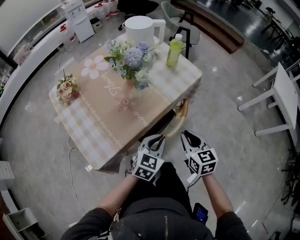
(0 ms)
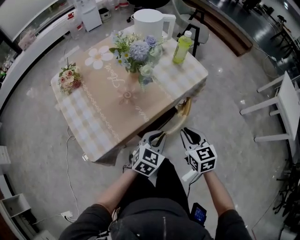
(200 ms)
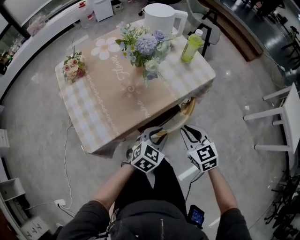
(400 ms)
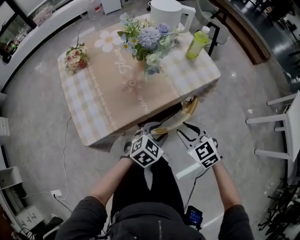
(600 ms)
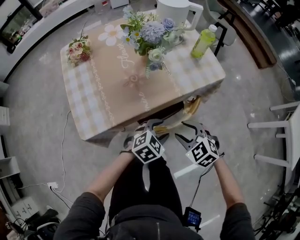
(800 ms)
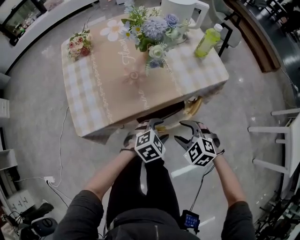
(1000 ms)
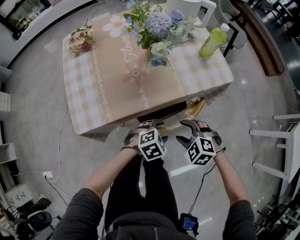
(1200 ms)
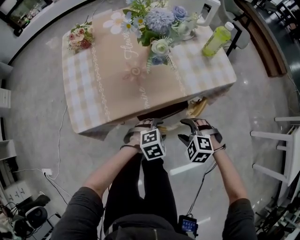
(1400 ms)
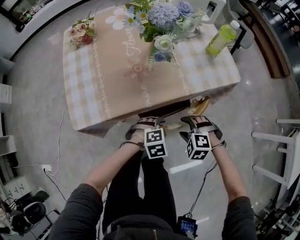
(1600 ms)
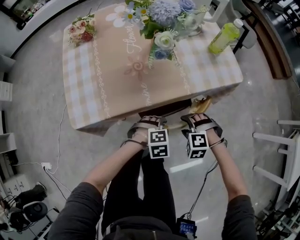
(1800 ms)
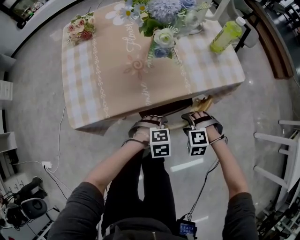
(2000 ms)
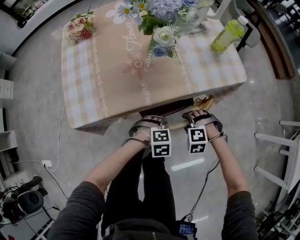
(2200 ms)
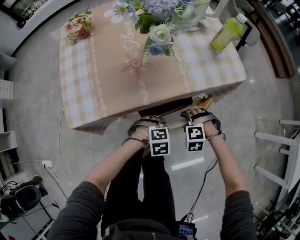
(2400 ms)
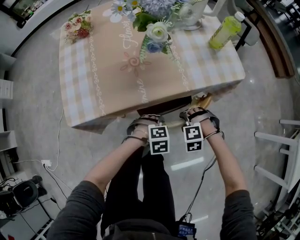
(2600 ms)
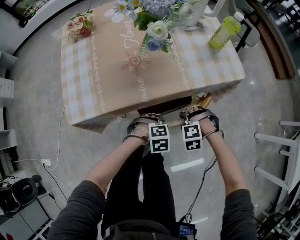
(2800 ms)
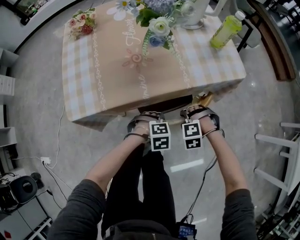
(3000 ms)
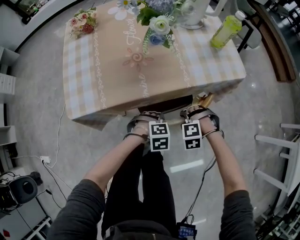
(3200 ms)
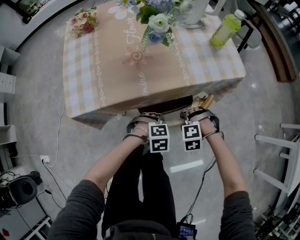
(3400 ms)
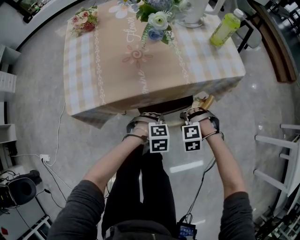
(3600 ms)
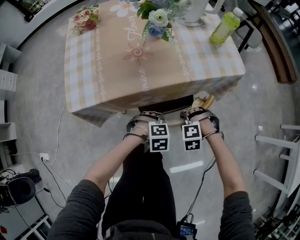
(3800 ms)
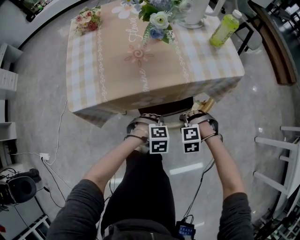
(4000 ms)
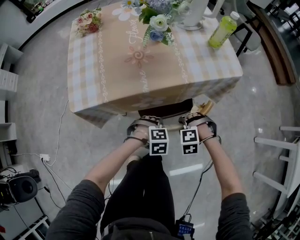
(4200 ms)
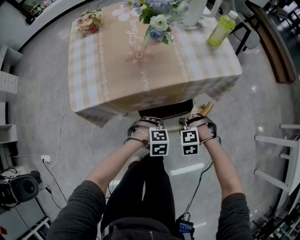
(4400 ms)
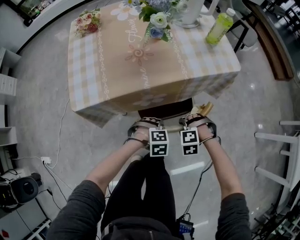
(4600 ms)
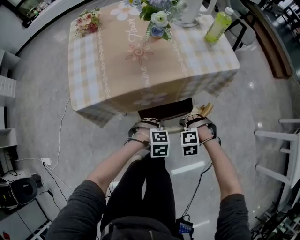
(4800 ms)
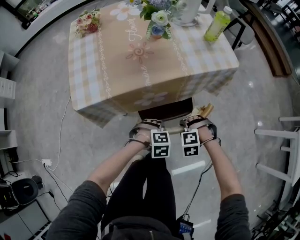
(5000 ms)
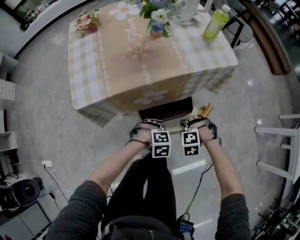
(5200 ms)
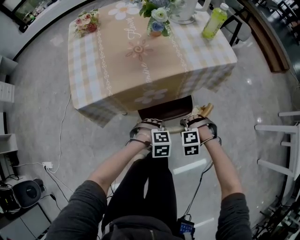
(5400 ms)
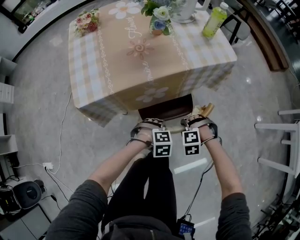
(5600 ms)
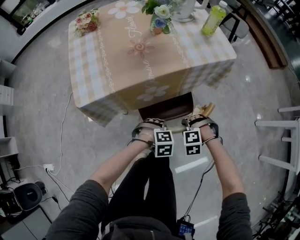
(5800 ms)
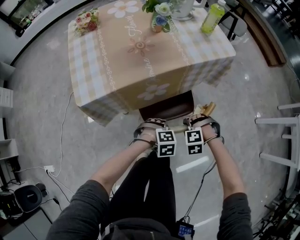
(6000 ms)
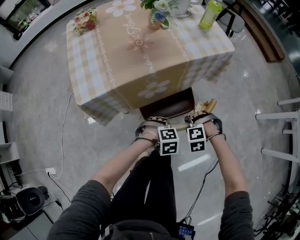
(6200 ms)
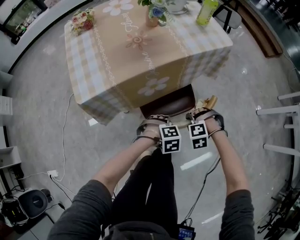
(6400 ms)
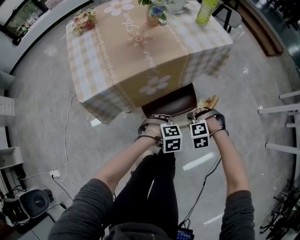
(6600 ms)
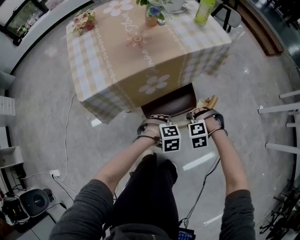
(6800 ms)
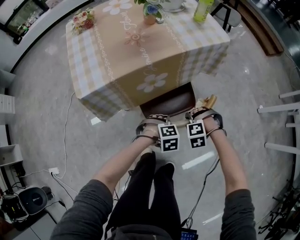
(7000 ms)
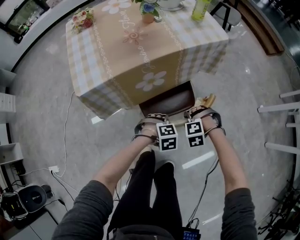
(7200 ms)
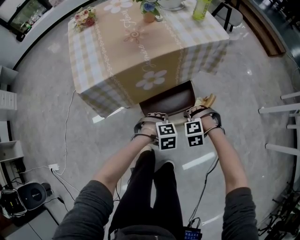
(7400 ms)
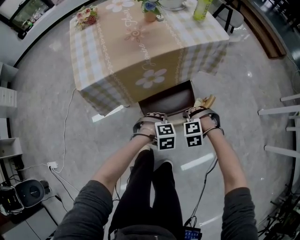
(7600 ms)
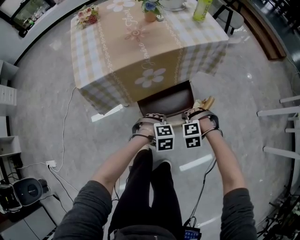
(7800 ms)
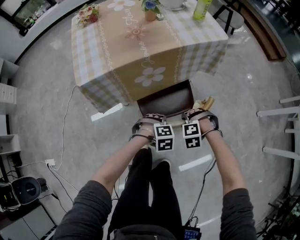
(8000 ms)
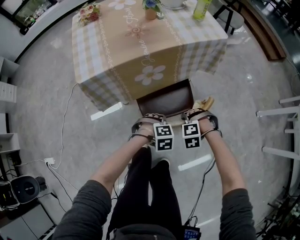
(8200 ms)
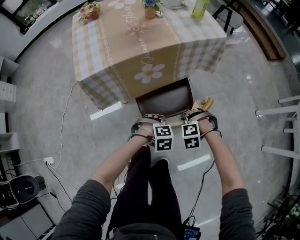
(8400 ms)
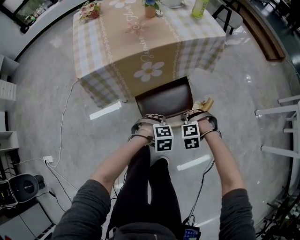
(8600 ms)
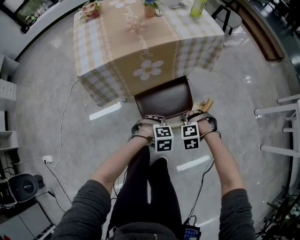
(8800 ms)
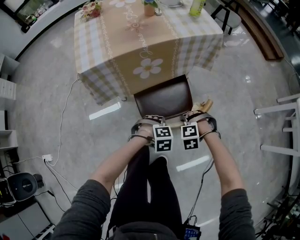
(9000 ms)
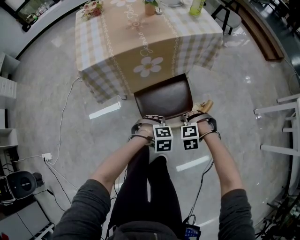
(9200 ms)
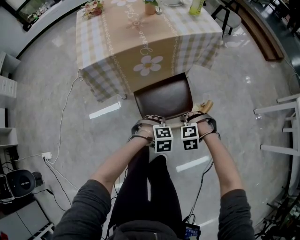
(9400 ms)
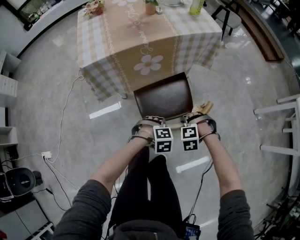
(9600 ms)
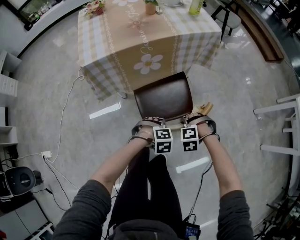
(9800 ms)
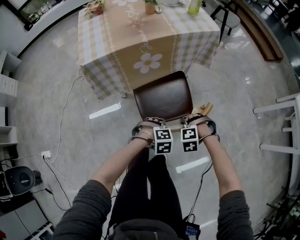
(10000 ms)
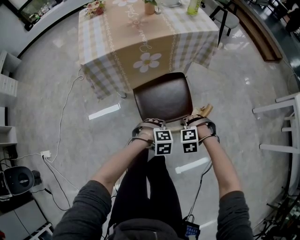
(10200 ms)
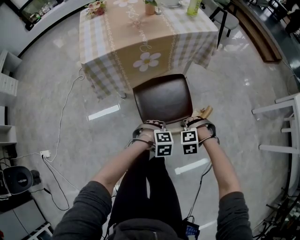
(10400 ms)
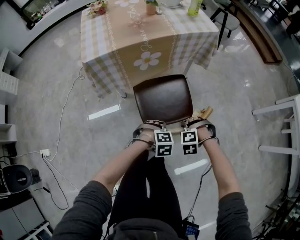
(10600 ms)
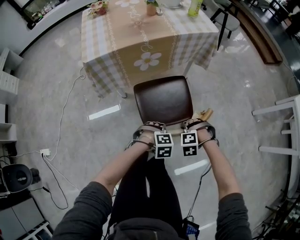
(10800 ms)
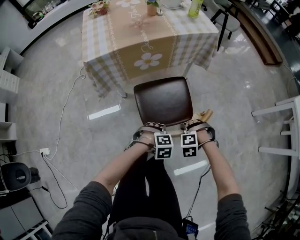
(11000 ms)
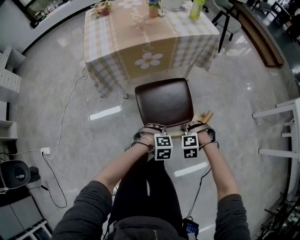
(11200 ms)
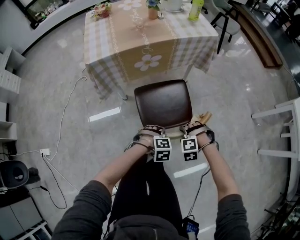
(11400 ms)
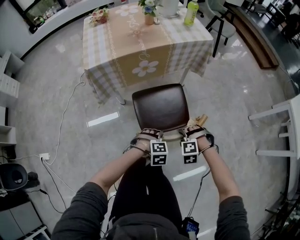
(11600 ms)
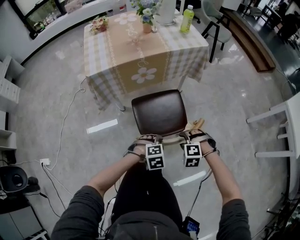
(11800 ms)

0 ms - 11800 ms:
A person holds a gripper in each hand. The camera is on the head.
0 ms - 1400 ms: Both grippers travel together downward, approximately 15 cm. The left gripper tilts its fingers approximately 30 degrees downward, and opens, while the right gripper twists approximately 70 degrees counterclockwise, seen from behind, and opens.
1400 ms - 3000 ms: The grippers both shift downward by roughly 10 cm. The left gripper closes up. Meanwhile the right gripper changes its angle by approximately 30 degrees.
3000 ms - 4400 ms: The right gripper changes place by about 5 cm. Meanwhile the left gripper changes place by some 5 cm.
4400 ms - 6000 ms: The left gripper shifts by approximately 10 cm. Meanwhile the right gripper shifts by roughly 10 cm.
6000 ms - 7400 ms: The grippers move only a little.
7400 ms - 8800 ms: The right gripper ends up roughly 10 cm from where it was, while the left gripper changes place by approximately 10 cm.
8800 ms - 10400 ms: The left gripper moves about 10 cm. Meanwhile the right gripper changes place by roughly 10 cm.
10400 ms - 11800 ms: Both grippers travel together upward, roughly 5 cm. The left gripper opens its fingers.

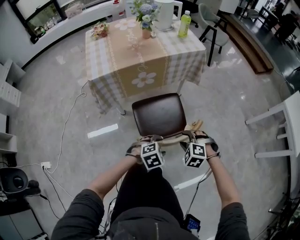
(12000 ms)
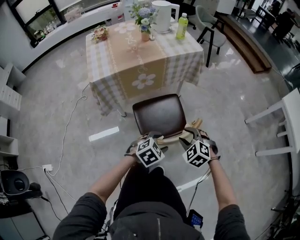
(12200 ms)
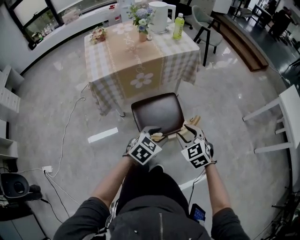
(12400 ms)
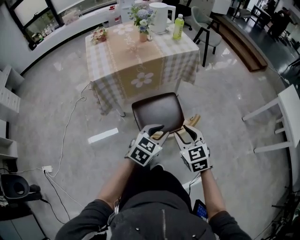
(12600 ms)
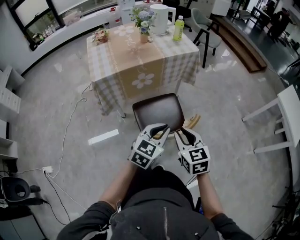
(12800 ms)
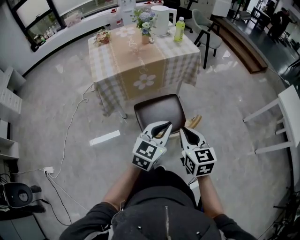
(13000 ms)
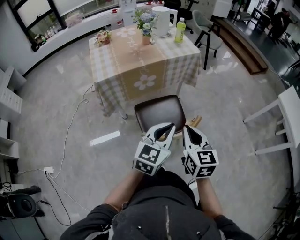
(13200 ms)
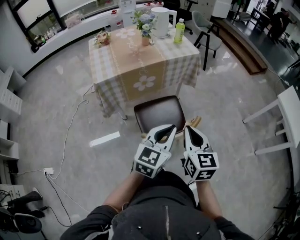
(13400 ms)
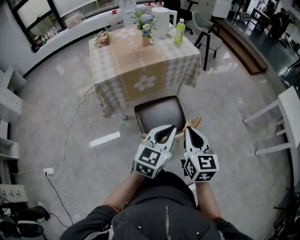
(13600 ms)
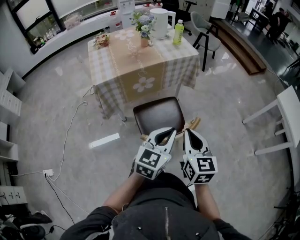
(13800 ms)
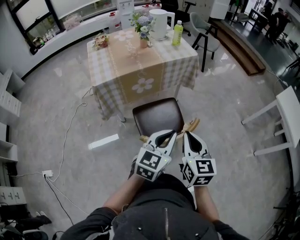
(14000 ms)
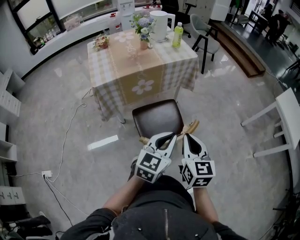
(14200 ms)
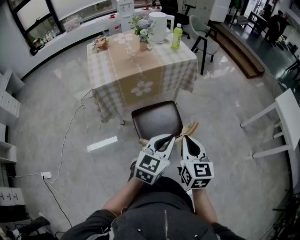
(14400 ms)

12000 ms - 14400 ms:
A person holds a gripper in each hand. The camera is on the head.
12000 ms - 13200 ms: The grippers both shift upward by some 25 cm. The right gripper rotates around the line of its fingers by roughly 70 degrees, clockwise from behind, and closes up. The left gripper tips its fingers upward by some 50 degrees, and closes up.
13200 ms - 14400 ms: The grippers make only small movements.

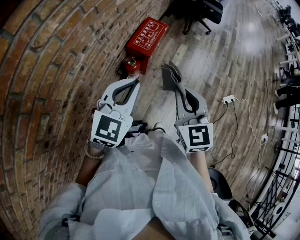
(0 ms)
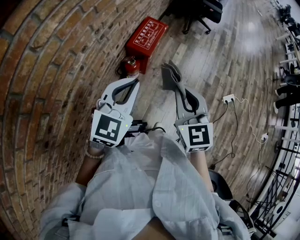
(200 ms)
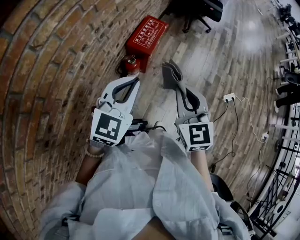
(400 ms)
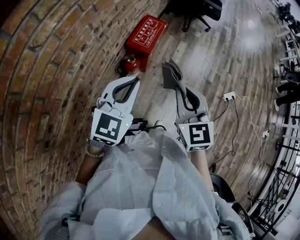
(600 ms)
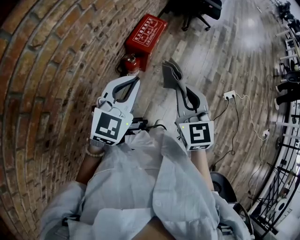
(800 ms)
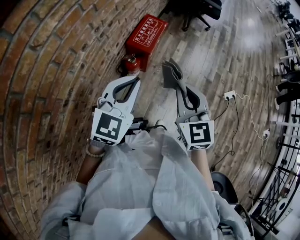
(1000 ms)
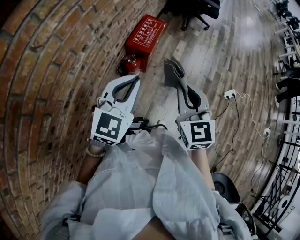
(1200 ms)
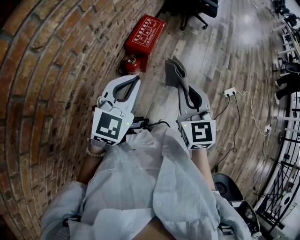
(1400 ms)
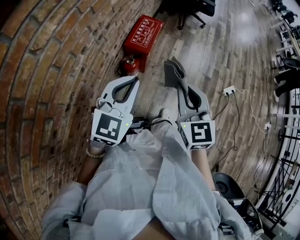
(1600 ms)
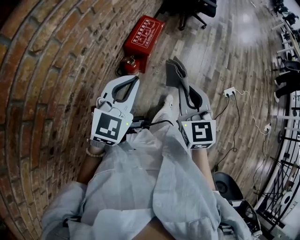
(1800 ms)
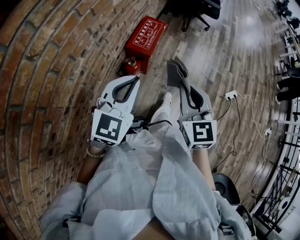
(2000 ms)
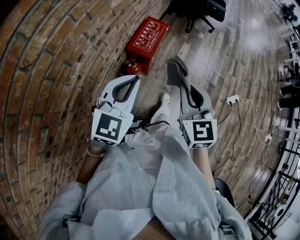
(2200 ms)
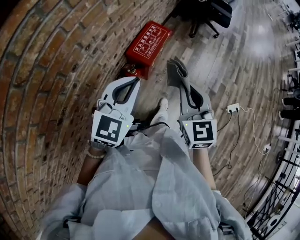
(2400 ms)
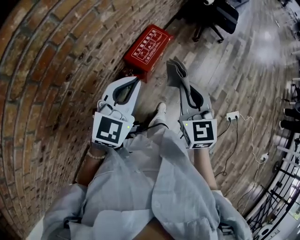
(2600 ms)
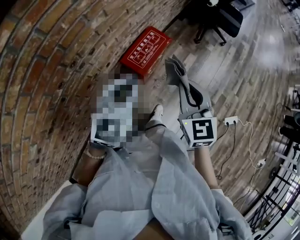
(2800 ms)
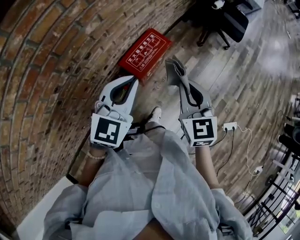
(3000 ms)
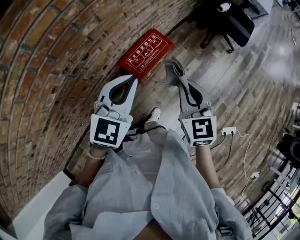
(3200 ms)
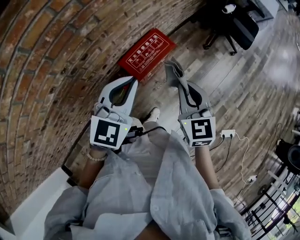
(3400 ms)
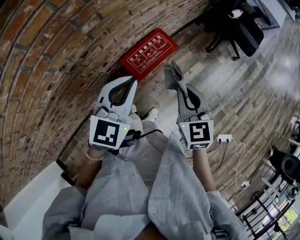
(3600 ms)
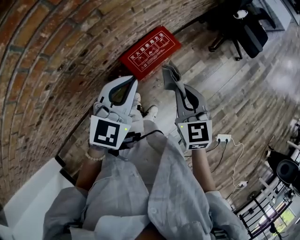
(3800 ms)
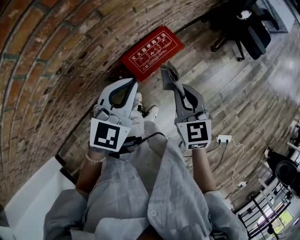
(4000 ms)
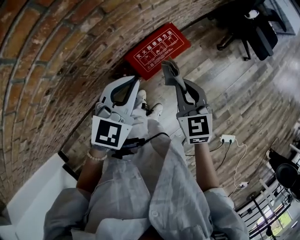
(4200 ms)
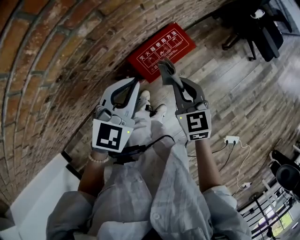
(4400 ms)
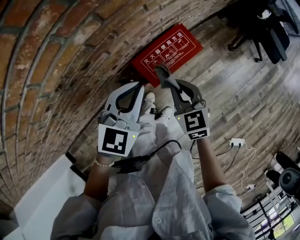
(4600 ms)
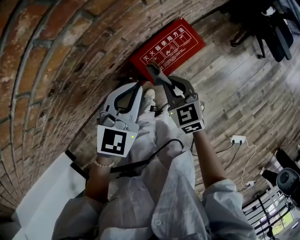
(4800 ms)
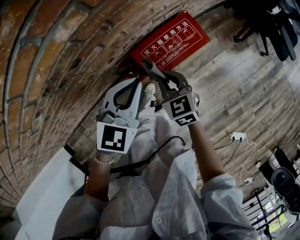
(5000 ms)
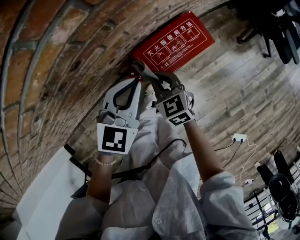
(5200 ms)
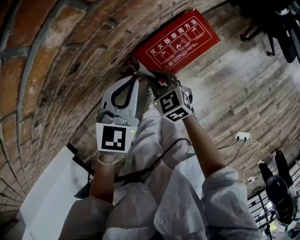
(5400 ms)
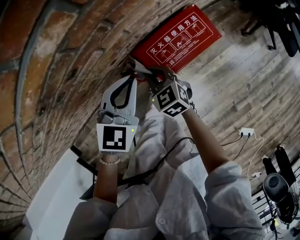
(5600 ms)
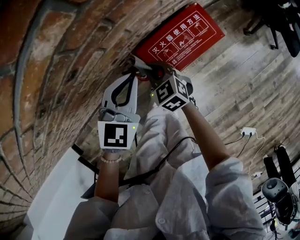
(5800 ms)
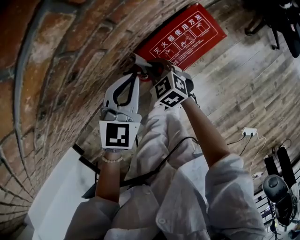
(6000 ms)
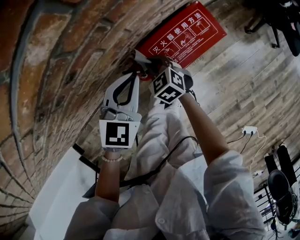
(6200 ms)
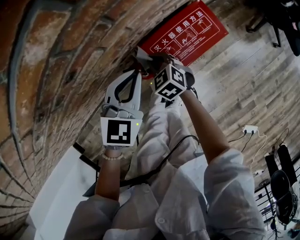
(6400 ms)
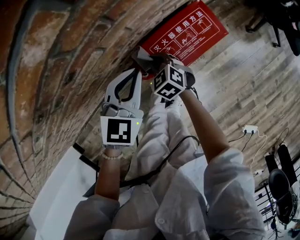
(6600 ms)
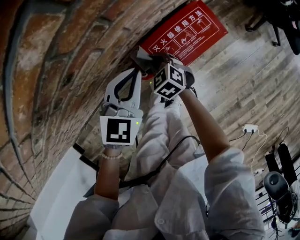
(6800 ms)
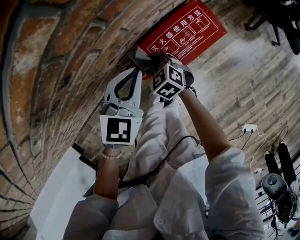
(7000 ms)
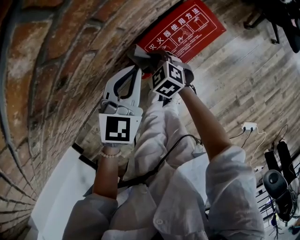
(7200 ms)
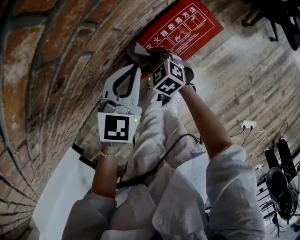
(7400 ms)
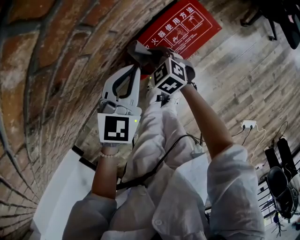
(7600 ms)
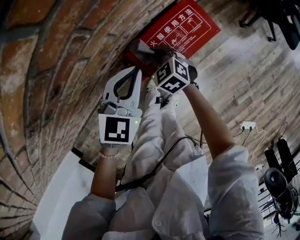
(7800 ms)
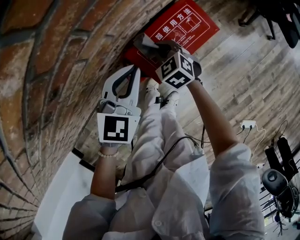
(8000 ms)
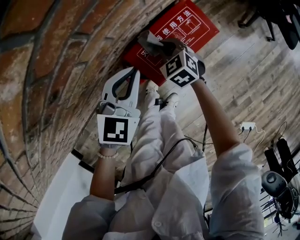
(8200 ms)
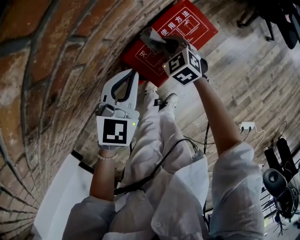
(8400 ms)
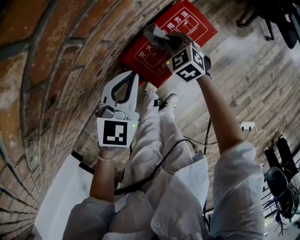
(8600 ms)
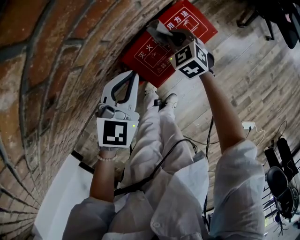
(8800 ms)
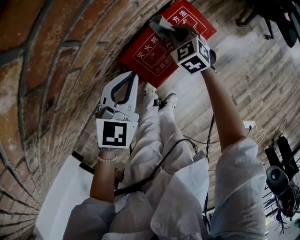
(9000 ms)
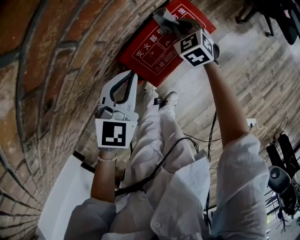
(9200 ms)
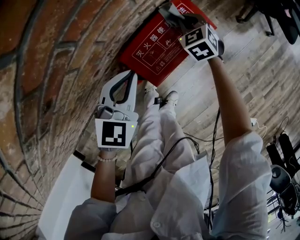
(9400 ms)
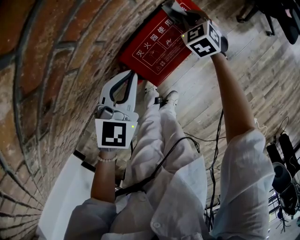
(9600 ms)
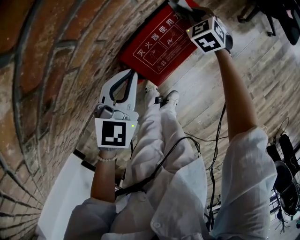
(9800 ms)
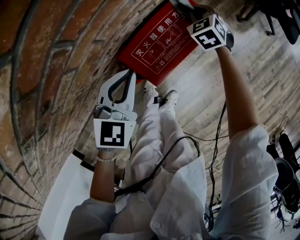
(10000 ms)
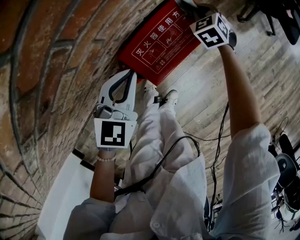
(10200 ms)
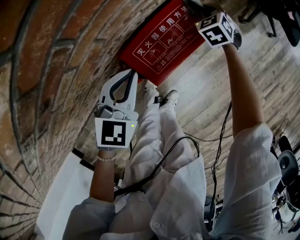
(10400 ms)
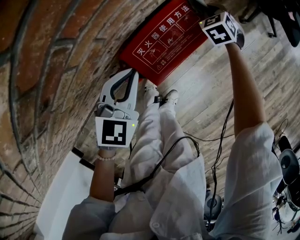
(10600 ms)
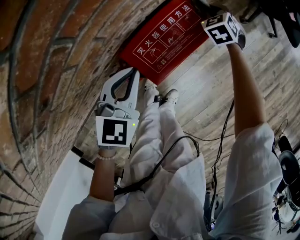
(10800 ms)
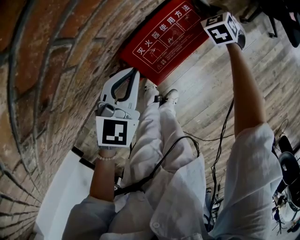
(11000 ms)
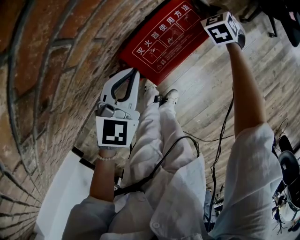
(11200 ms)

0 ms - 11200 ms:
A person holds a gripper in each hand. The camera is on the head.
0 ms - 1600 ms: The grippers make only small movements.
1600 ms - 3200 ms: The left gripper heads forward and to the right, covering about 30 cm, and changes its angle by roughly 20 degrees; the right gripper goes roughly 35 cm forward, and turns by approximately 20 degrees.
3200 ms - 4800 ms: The right gripper travels downward, forward and to the left by about 30 cm, and swivels roughly 30 degrees. Meanwhile the left gripper moves downward and forward, approximately 20 cm.
4800 ms - 6400 ms: The right gripper is displaced downward, to the left and forward by some 20 cm, and rotates roughly 20 degrees. The left gripper shifts approximately 10 cm downward and to the left.
6400 ms - 8000 ms: The left gripper changes place by some 5 cm, while the right gripper heads to the right, covering some 10 cm.
8000 ms - 9600 ms: The right gripper goes some 20 cm to the right and forward.
9600 ms - 11200 ms: The right gripper is displaced to the right and forward by roughly 10 cm.
